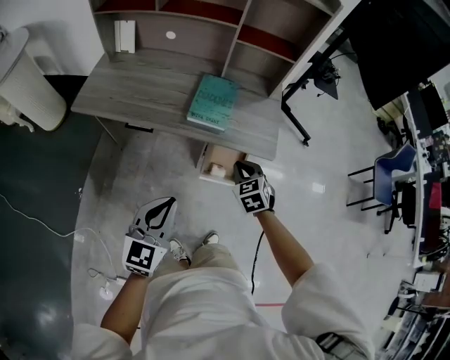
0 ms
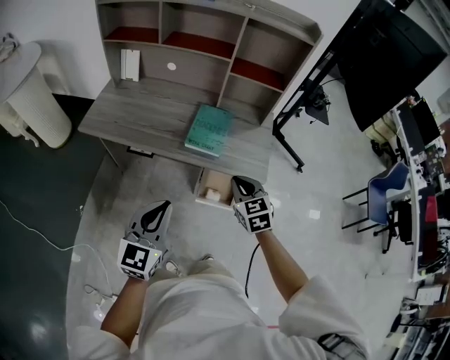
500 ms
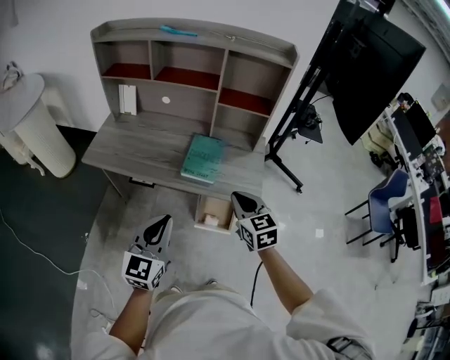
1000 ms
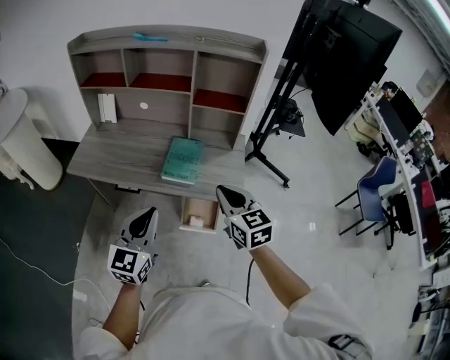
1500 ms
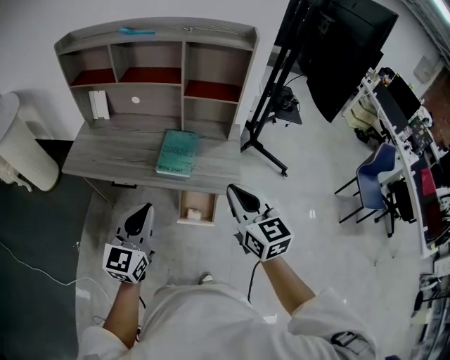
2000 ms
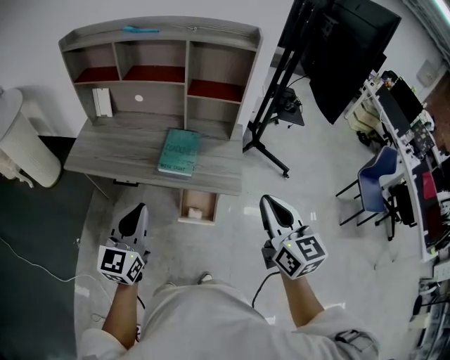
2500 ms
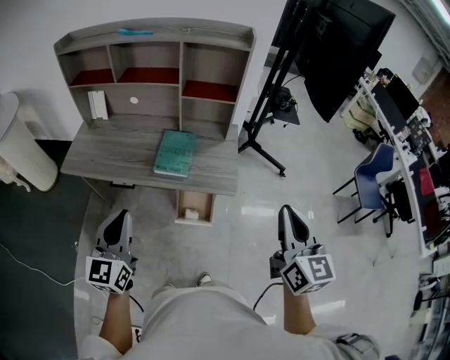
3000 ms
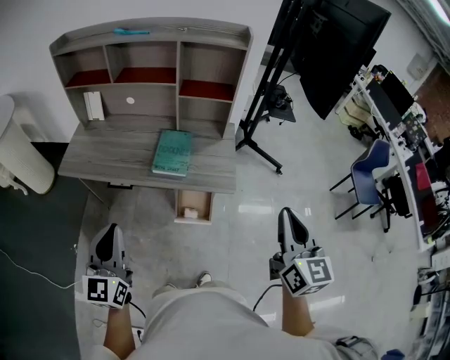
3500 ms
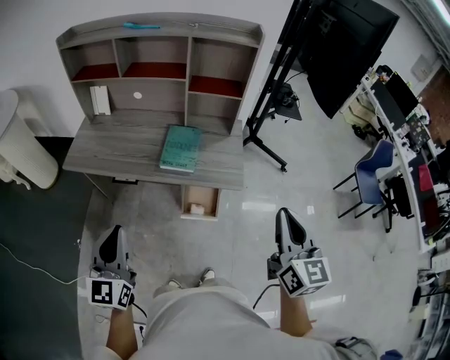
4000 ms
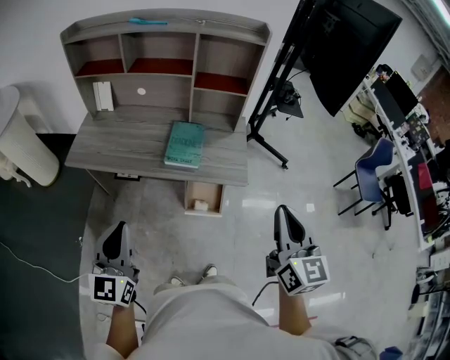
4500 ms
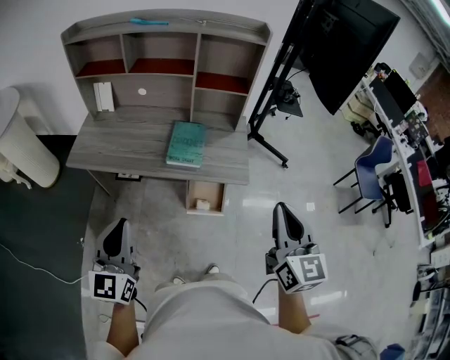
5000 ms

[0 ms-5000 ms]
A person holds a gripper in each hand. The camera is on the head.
0 ms to 2500 ms: The right gripper is displaced upward and to the right by approximately 35 cm, and points its fingers roughly 40 degrees further upward; the left gripper is displaced upward by some 15 cm.
2500 ms to 5000 ms: The right gripper heads backward, covering about 5 cm. Meanwhile the left gripper goes approximately 10 cm to the left and backward.

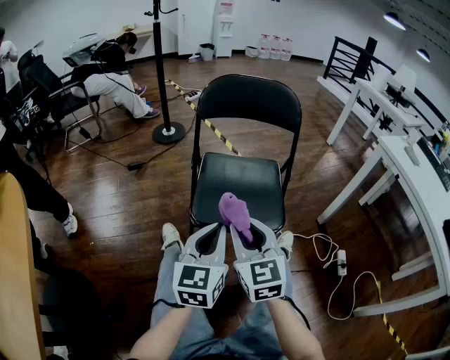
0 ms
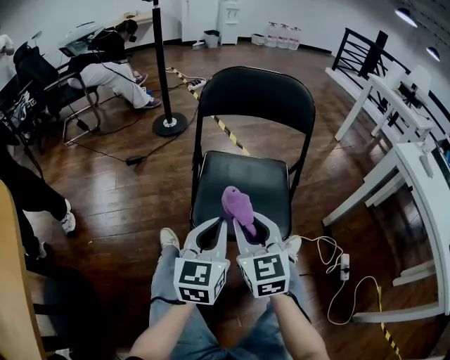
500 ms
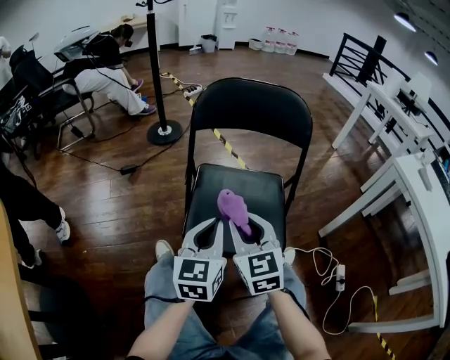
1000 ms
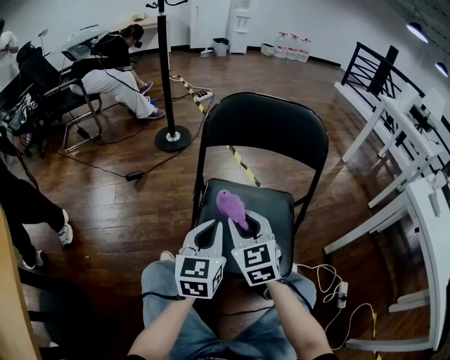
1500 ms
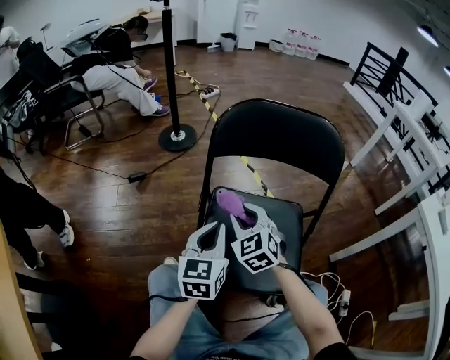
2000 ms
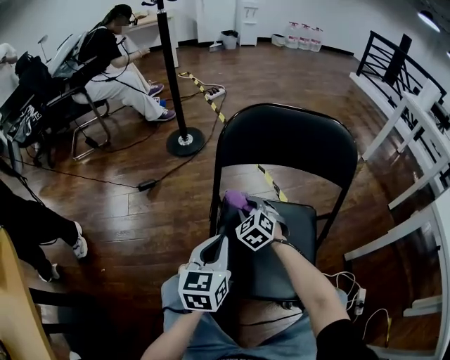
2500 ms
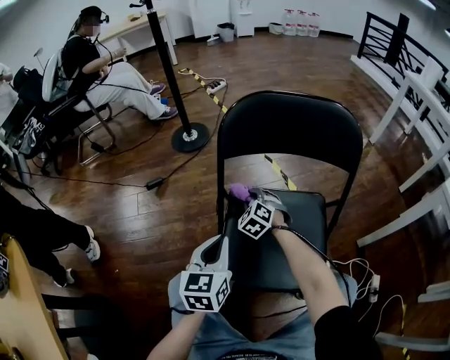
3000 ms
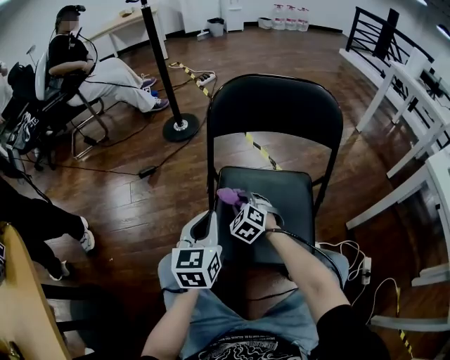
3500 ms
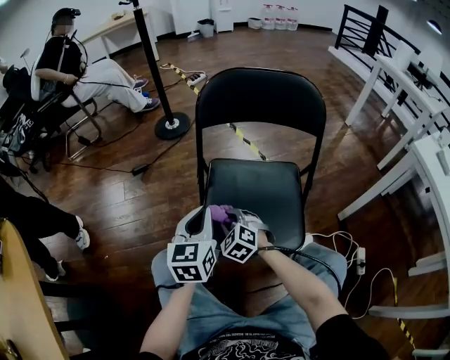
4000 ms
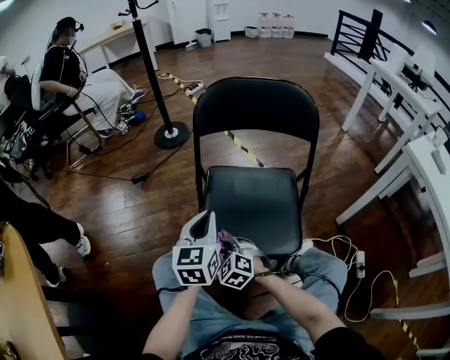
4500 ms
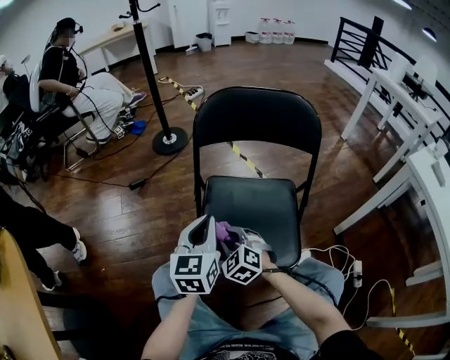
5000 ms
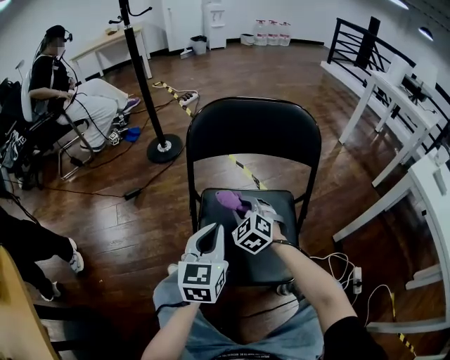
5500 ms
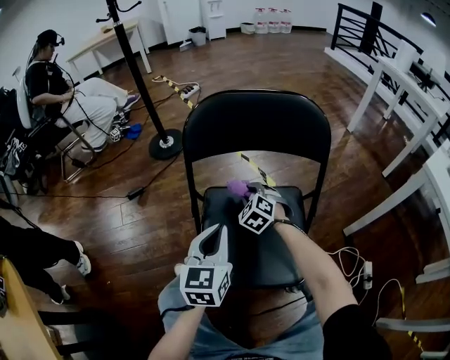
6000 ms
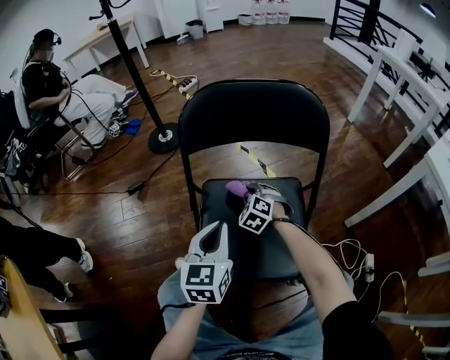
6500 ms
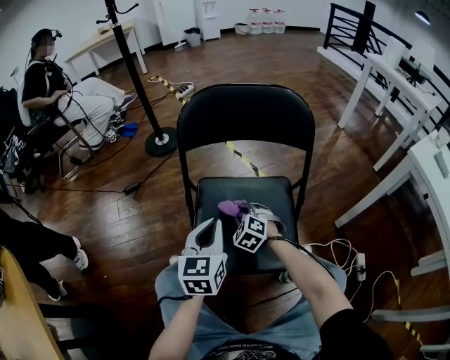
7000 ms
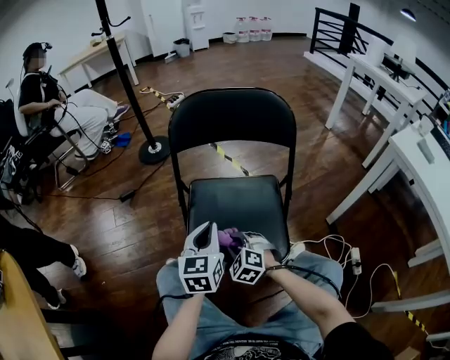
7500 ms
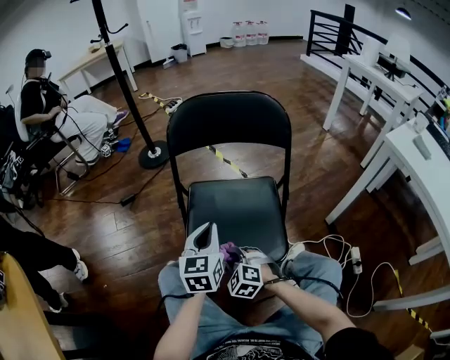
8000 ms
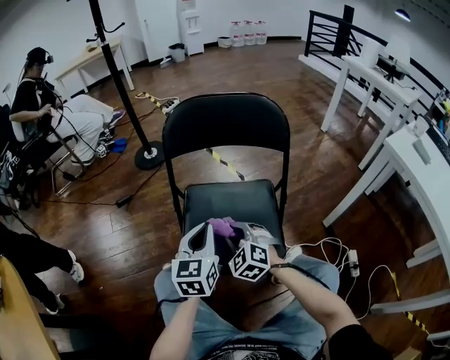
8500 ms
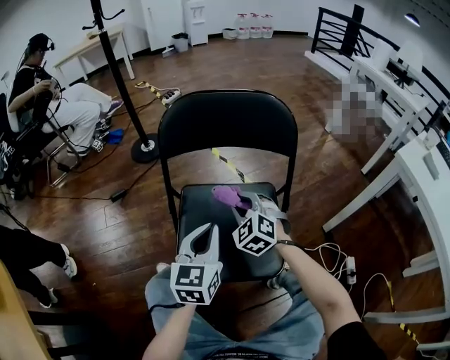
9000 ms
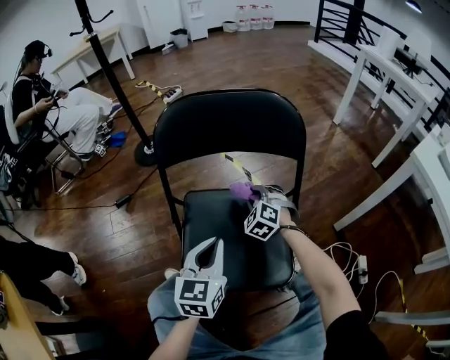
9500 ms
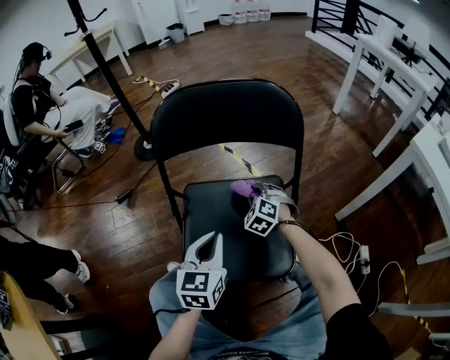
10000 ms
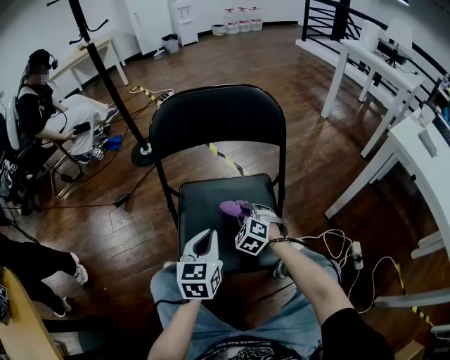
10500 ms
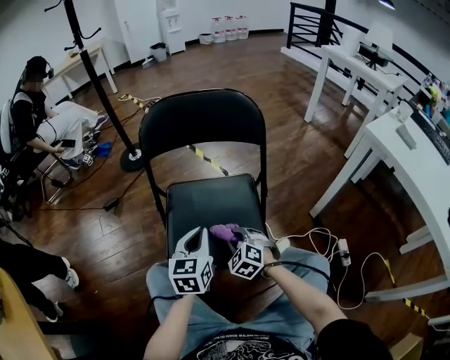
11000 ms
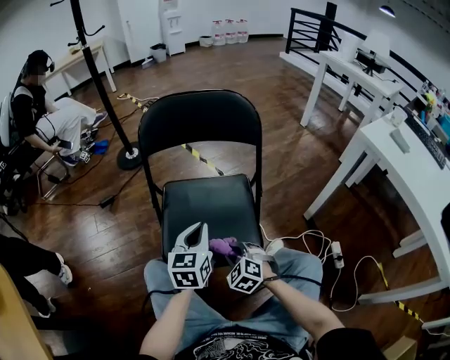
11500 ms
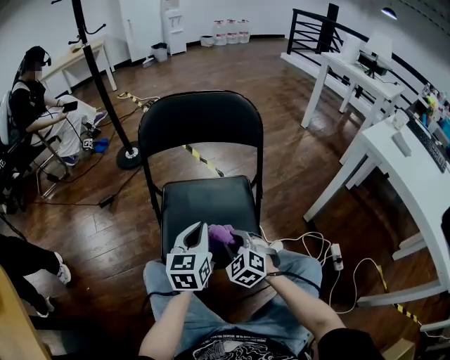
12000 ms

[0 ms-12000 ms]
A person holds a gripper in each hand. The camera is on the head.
0 ms to 2000 ms: Both grippers travel together forward, approximately 30 cm. The right gripper swivels approximately 30 degrees.
2000 ms to 4000 ms: The left gripper moves backward, roughly 5 cm; the right gripper heads downward and backward, covering about 15 cm.
4000 ms to 6000 ms: The right gripper goes roughly 25 cm forward and to the right. The left gripper goes roughly 10 cm to the right and forward.
6000 ms to 8000 ms: The left gripper shifts about 5 cm backward. Meanwhile the right gripper shifts approximately 30 cm backward.
8000 ms to 10000 ms: The left gripper changes place by some 5 cm, while the right gripper moves forward and to the right, roughly 30 cm.
10000 ms to 12000 ms: The right gripper is displaced backward by approximately 25 cm. Meanwhile the left gripper goes some 5 cm backward.

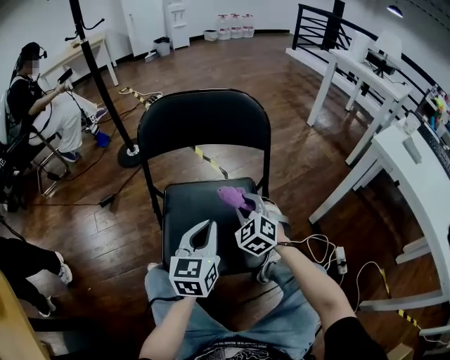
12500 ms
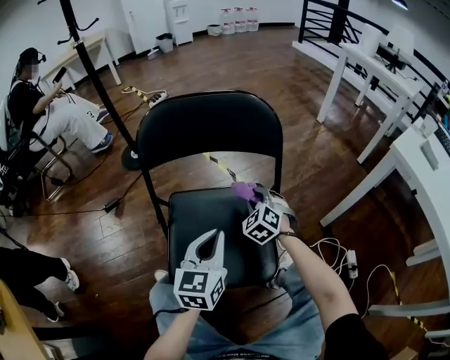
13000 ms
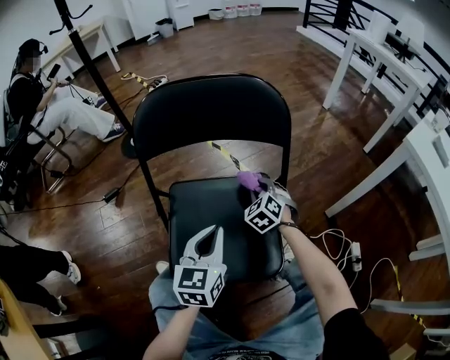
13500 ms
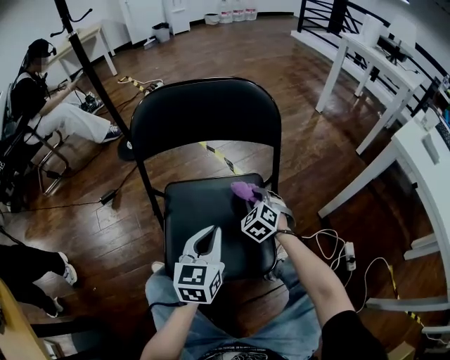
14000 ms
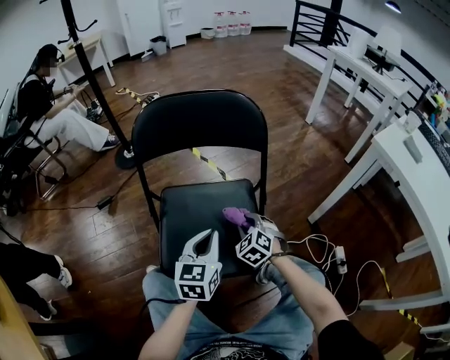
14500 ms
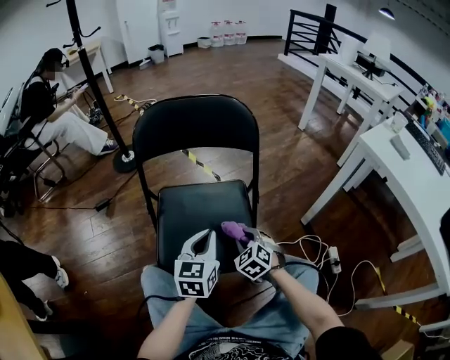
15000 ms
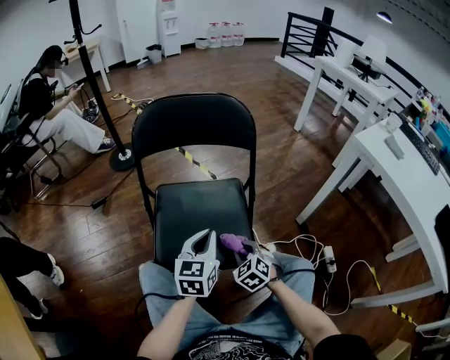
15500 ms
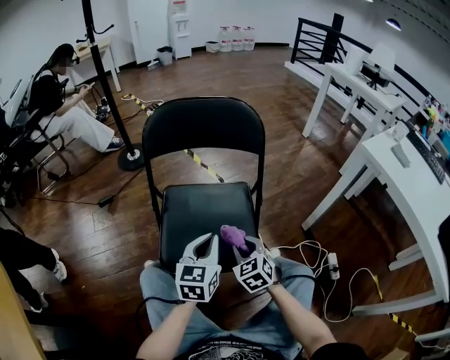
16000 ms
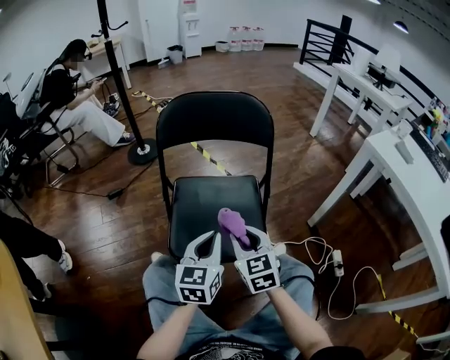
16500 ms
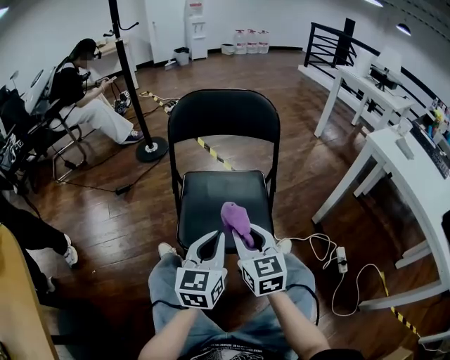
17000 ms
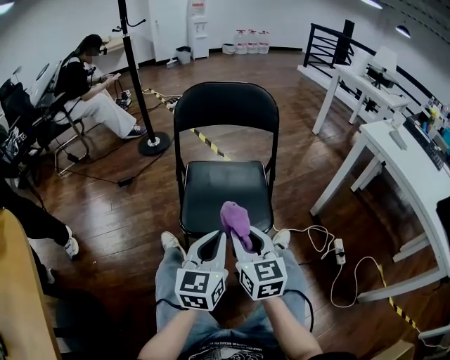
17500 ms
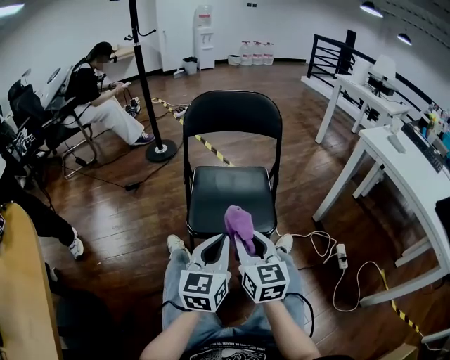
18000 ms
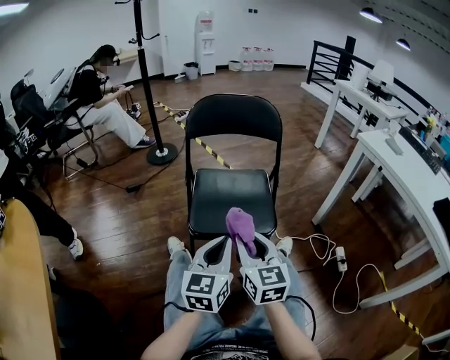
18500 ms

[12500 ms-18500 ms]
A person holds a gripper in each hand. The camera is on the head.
12500 ms to 14500 ms: The right gripper moves downward, about 10 cm, and travels forward and back again, approximately 10 cm each way.
14500 ms to 16500 ms: The right gripper is displaced upward and backward by about 20 cm, and changes its angle by approximately 40 degrees. The left gripper moves backward, roughly 10 cm.
16500 ms to 18500 ms: The right gripper travels backward and upward by roughly 20 cm. The left gripper goes some 15 cm backward.

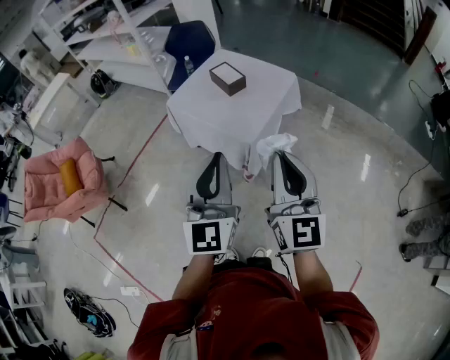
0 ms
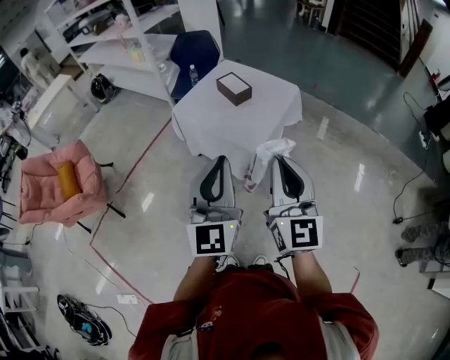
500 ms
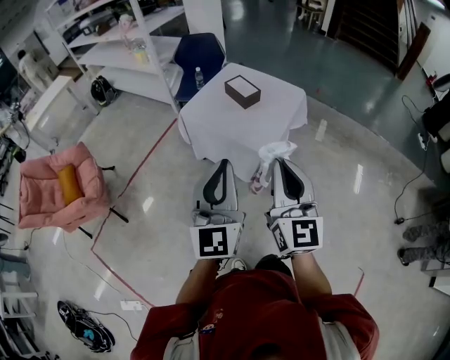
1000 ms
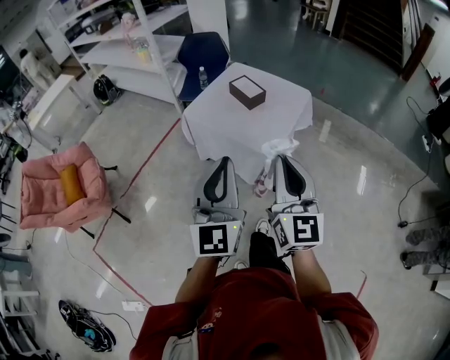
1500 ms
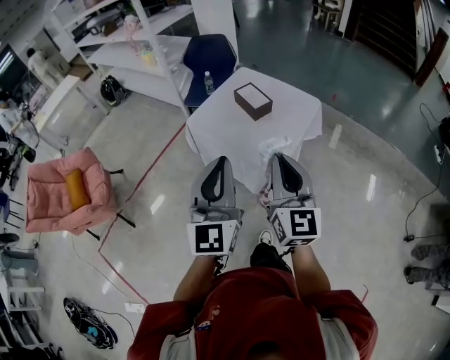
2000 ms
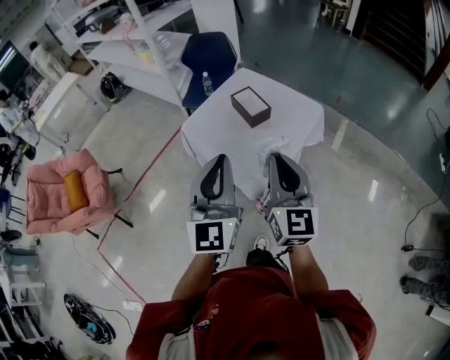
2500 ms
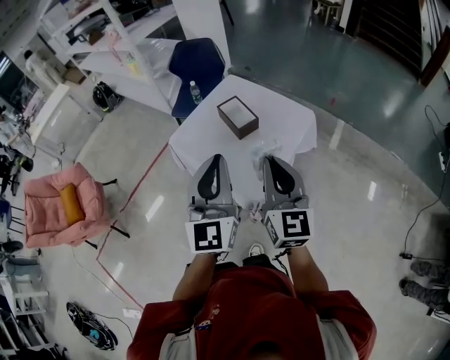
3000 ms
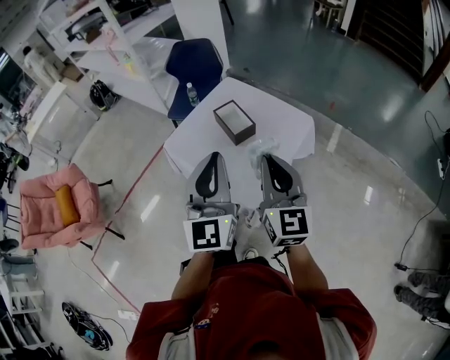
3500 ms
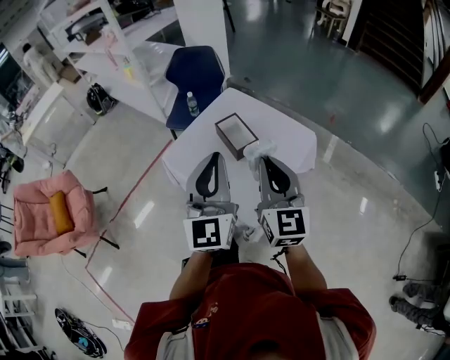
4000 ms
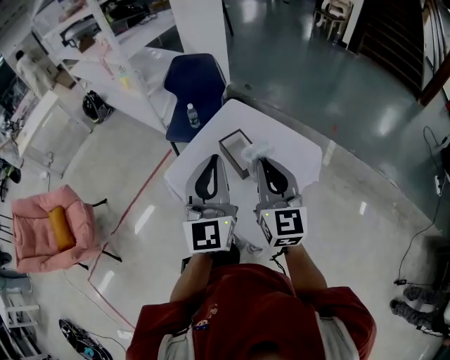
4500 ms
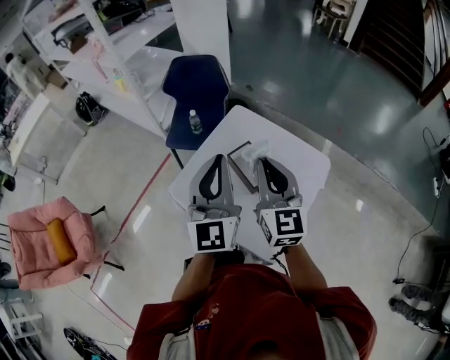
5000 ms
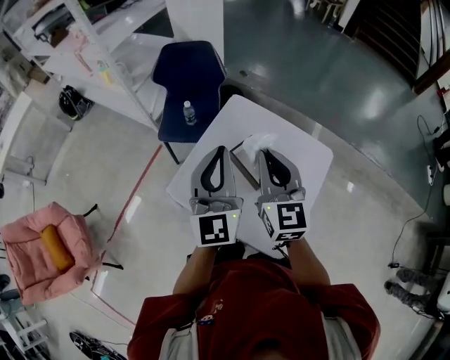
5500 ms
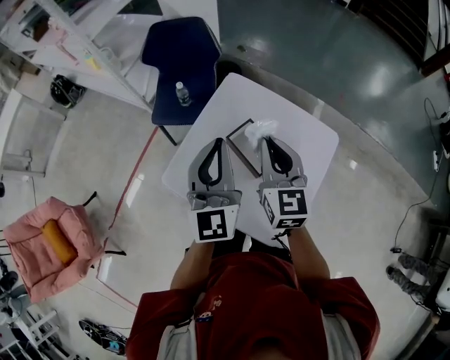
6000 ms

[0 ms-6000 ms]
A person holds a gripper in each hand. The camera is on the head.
0 ms to 2000 ms: The left gripper travels to the left and forward by roughly 15 cm. Meanwhile the right gripper shifts approximately 15 cm forward and to the left.
2000 ms to 4000 ms: Both grippers move forward, roughly 25 cm.
4000 ms to 6000 ms: Both grippers move forward, roughly 30 cm.
